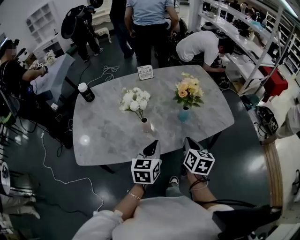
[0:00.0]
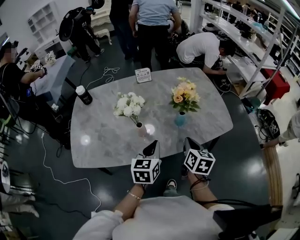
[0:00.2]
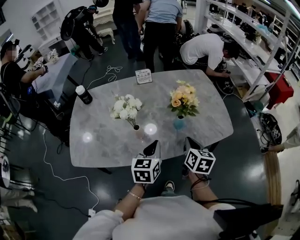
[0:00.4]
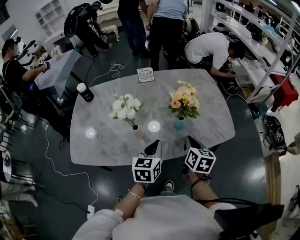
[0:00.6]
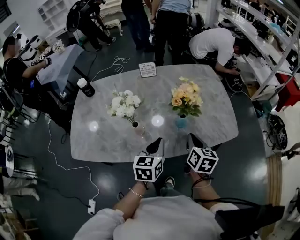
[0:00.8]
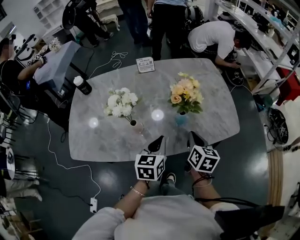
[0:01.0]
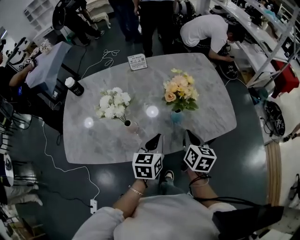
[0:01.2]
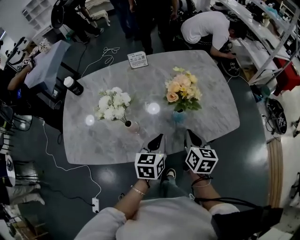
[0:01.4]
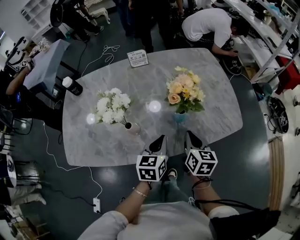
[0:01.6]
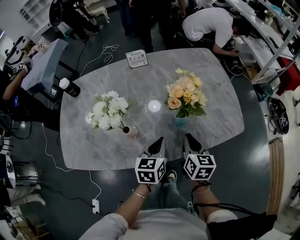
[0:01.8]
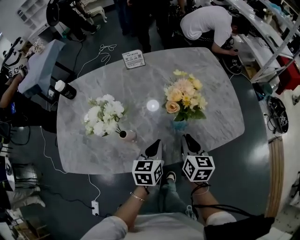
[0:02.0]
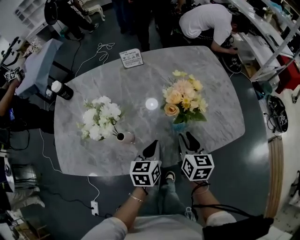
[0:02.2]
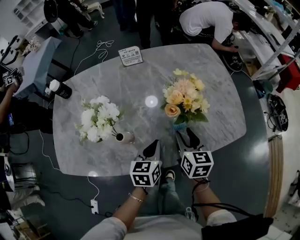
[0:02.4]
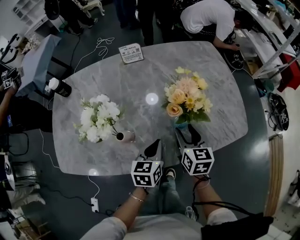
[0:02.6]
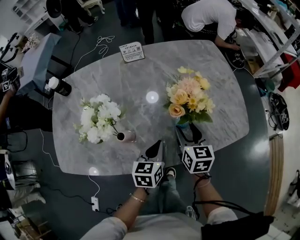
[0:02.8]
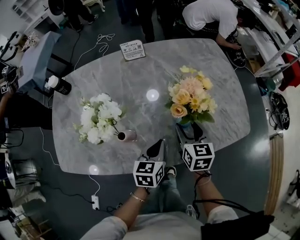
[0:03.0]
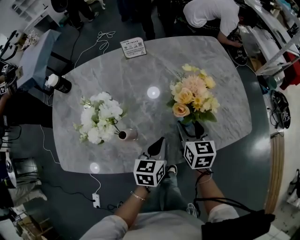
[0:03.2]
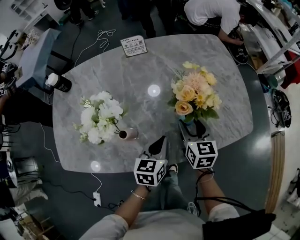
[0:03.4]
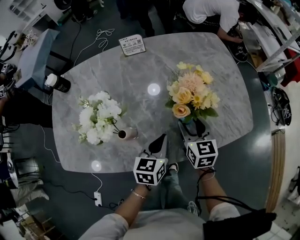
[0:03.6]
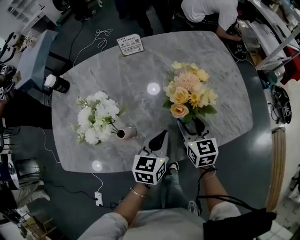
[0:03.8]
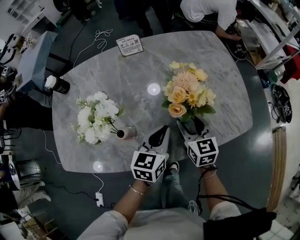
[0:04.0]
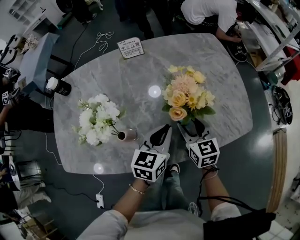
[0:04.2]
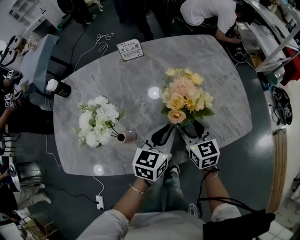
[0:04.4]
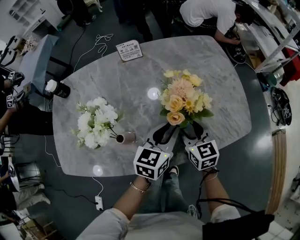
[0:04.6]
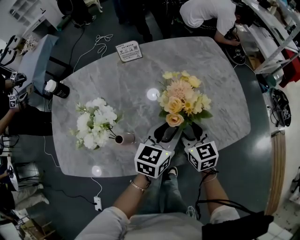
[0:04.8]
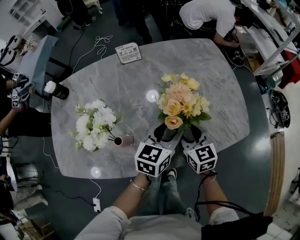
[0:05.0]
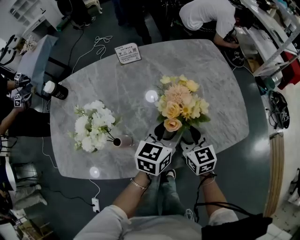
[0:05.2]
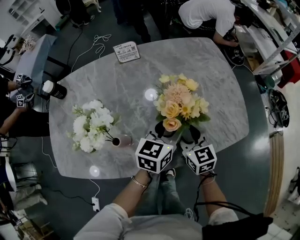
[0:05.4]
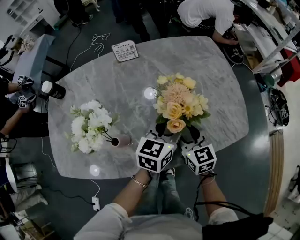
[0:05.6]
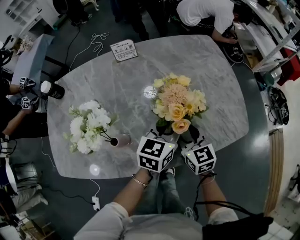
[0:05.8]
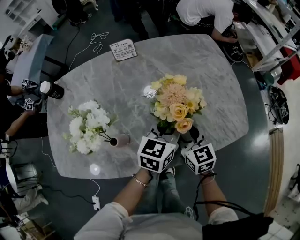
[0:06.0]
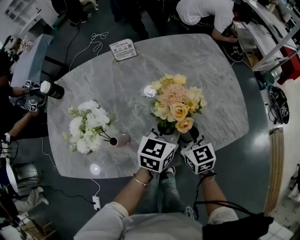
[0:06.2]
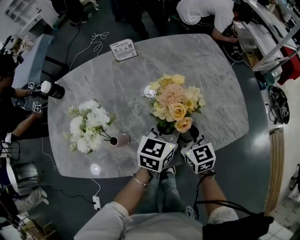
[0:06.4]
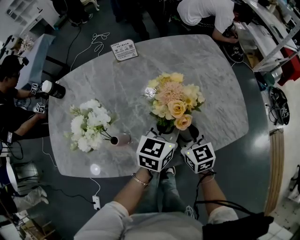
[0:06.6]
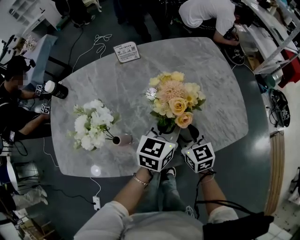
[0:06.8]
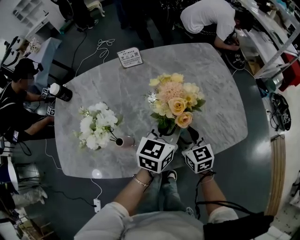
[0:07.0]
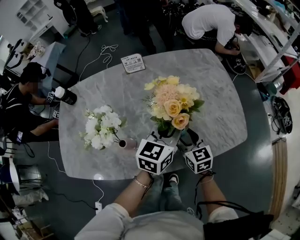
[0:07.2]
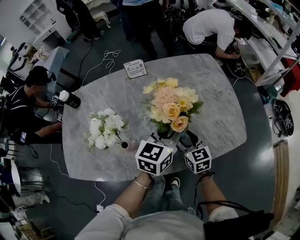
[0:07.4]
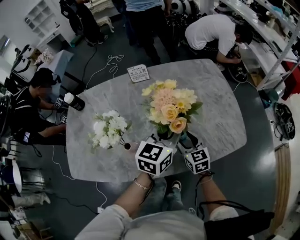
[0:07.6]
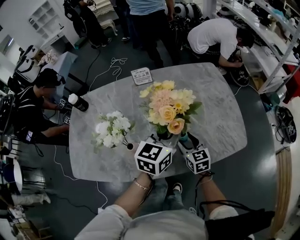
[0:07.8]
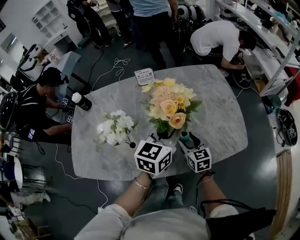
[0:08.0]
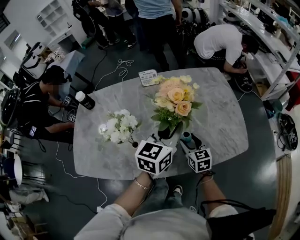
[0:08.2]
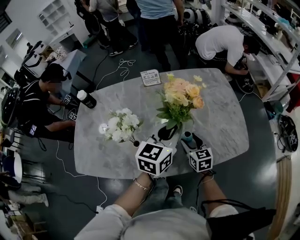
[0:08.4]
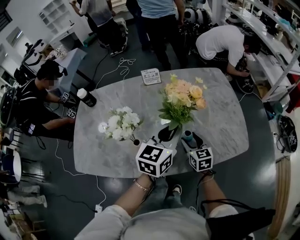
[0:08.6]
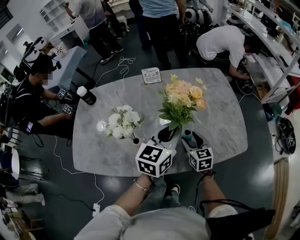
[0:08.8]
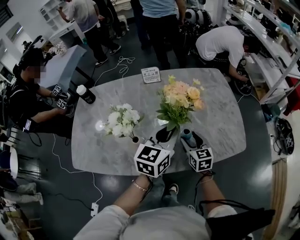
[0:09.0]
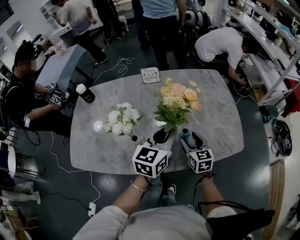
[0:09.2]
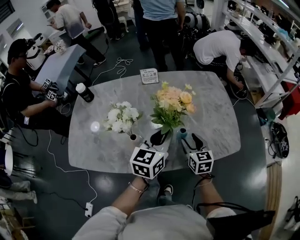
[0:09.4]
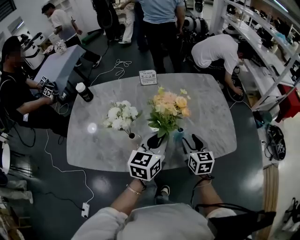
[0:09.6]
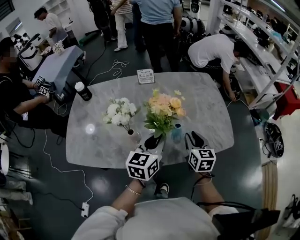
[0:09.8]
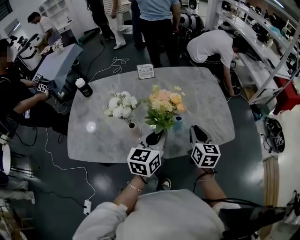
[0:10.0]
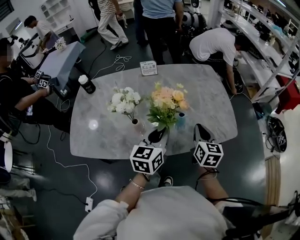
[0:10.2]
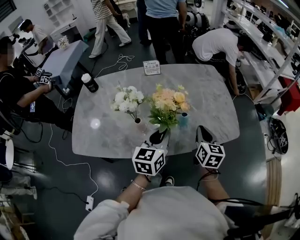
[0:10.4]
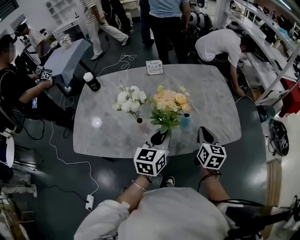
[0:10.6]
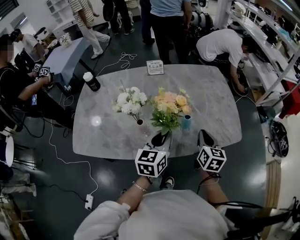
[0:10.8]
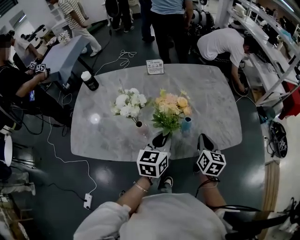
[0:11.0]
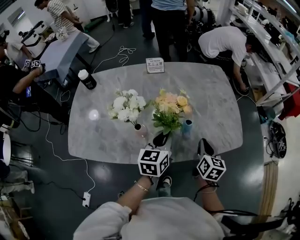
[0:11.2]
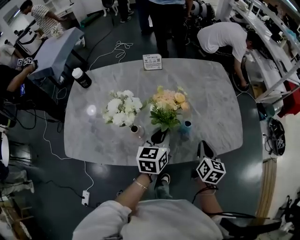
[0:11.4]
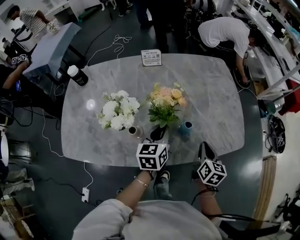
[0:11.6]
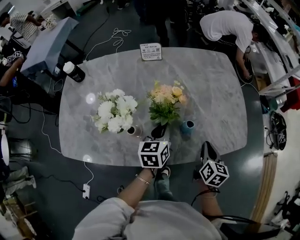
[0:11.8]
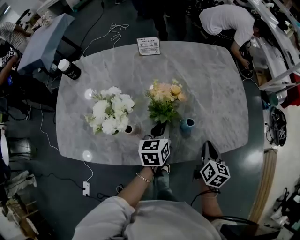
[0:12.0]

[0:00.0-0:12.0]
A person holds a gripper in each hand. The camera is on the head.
0:00.0 to 0:01.6: The left gripper travels forward, to the right and downward by approximately 15 cm; the right gripper goes about 10 cm forward and downward.
0:01.6 to 0:03.0: The right gripper travels forward by approximately 10 cm, and opens. The left gripper travels downward by approximately 5 cm.
0:03.0 to 0:04.4: The left gripper moves upward and forward, about 10 cm.
0:04.4 to 0:06.0: The left gripper changes place by about 5 cm, and opens, then closes again.
0:06.0 to 0:07.6: The left gripper shifts roughly 10 cm upward.
0:07.6 to 0:09.0: The left gripper ends up approximately 5 cm from where it was.
0:09.0 to 0:10.4: The right gripper travels upward, backward and to the right by some 15 cm, and closes its fingers. Meanwhile the left gripper is displaced backward by roughly 10 cm.
0:10.4 to 0:12.0: The left gripper goes roughly 20 cm downward and forward, and turns by approximately 20 degrees, while the right gripper travels downward by approximately 10 cm.

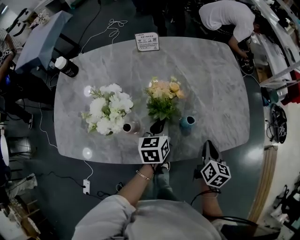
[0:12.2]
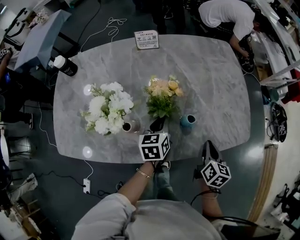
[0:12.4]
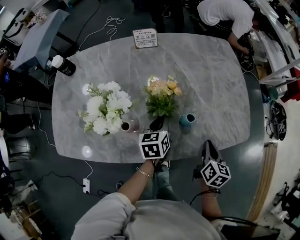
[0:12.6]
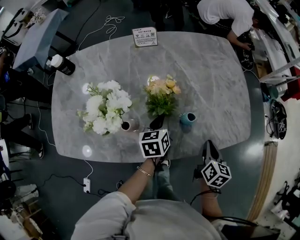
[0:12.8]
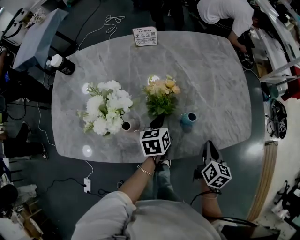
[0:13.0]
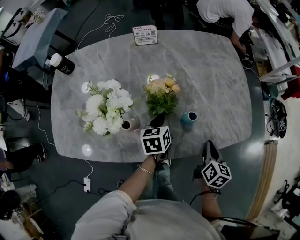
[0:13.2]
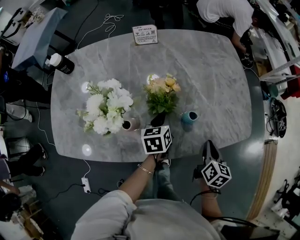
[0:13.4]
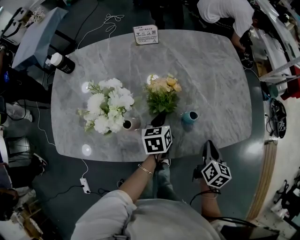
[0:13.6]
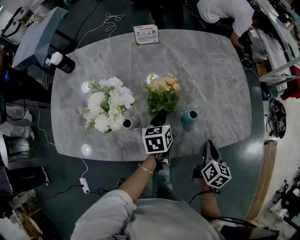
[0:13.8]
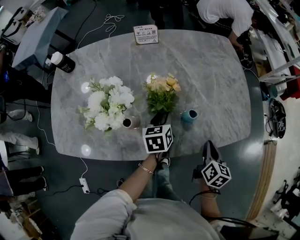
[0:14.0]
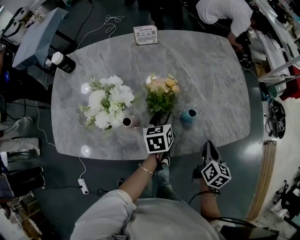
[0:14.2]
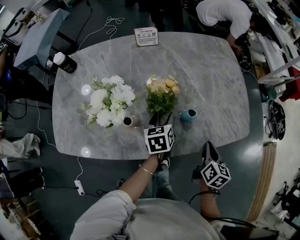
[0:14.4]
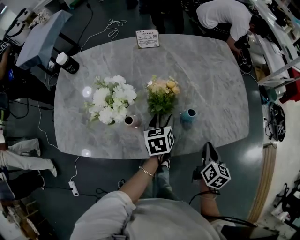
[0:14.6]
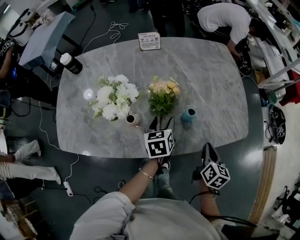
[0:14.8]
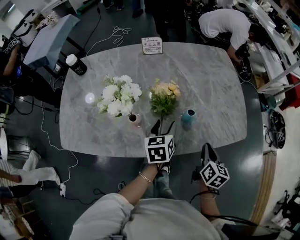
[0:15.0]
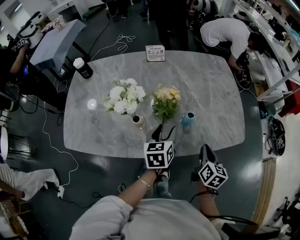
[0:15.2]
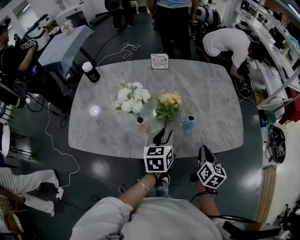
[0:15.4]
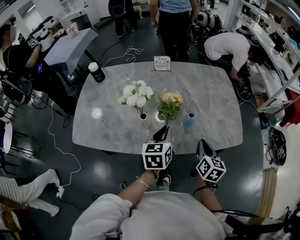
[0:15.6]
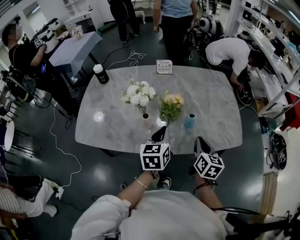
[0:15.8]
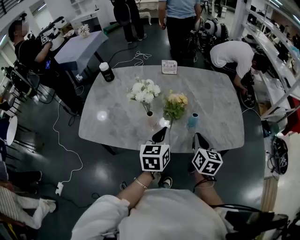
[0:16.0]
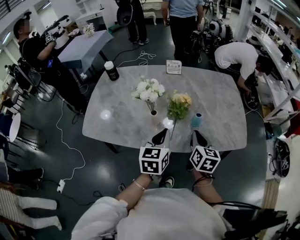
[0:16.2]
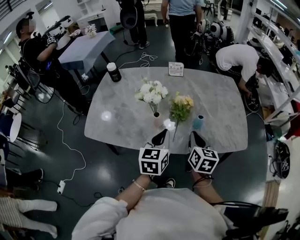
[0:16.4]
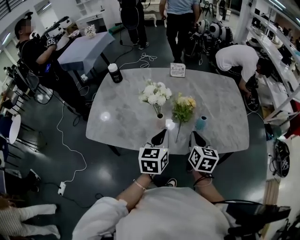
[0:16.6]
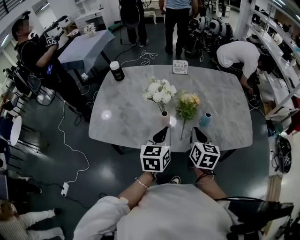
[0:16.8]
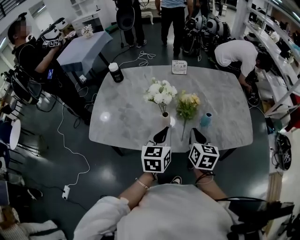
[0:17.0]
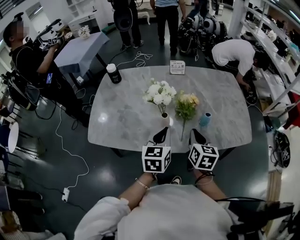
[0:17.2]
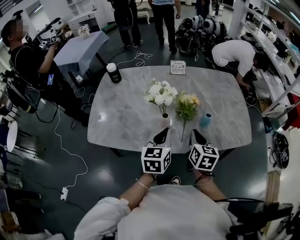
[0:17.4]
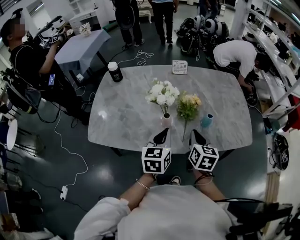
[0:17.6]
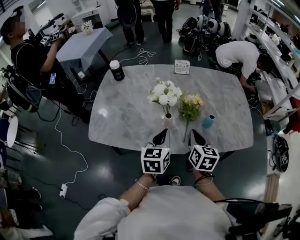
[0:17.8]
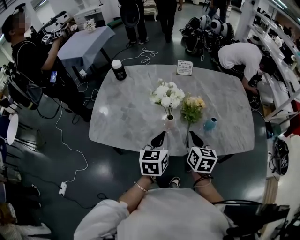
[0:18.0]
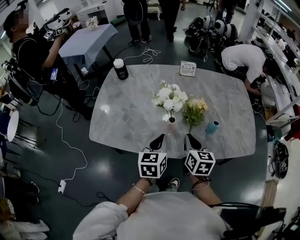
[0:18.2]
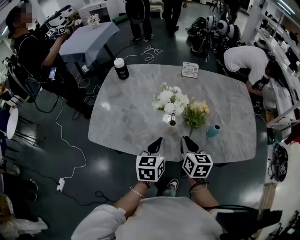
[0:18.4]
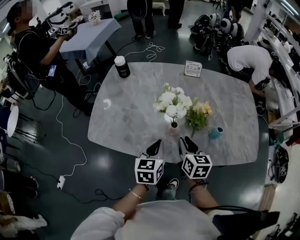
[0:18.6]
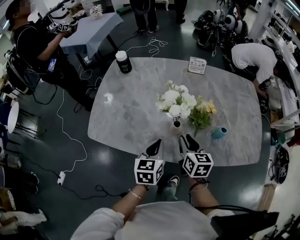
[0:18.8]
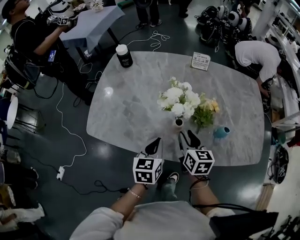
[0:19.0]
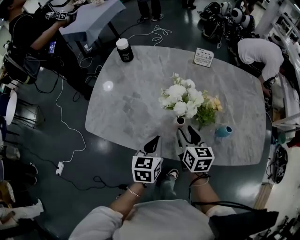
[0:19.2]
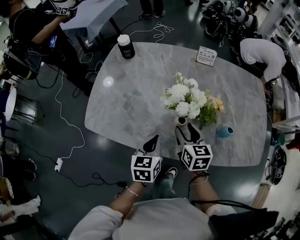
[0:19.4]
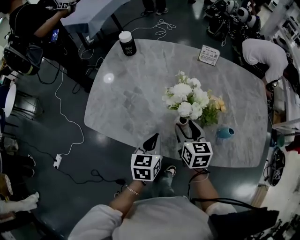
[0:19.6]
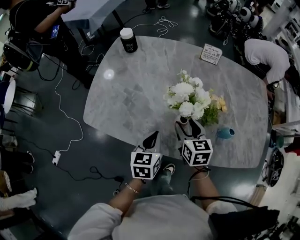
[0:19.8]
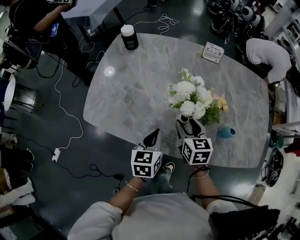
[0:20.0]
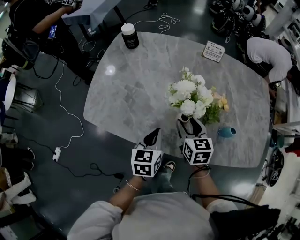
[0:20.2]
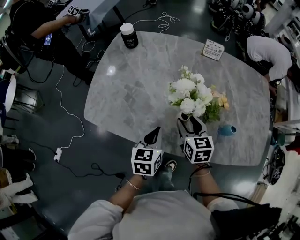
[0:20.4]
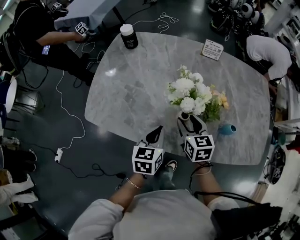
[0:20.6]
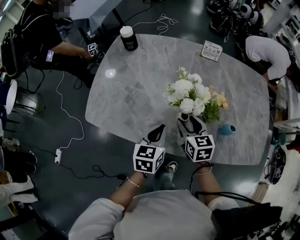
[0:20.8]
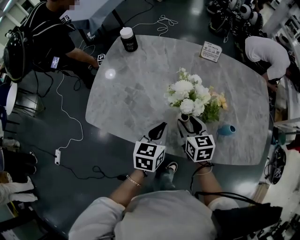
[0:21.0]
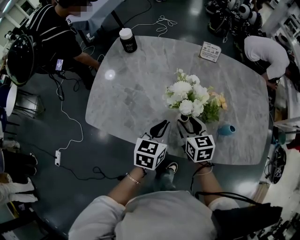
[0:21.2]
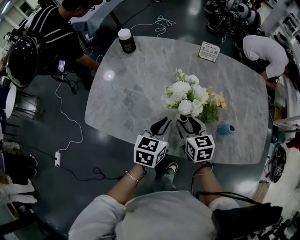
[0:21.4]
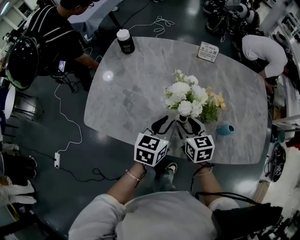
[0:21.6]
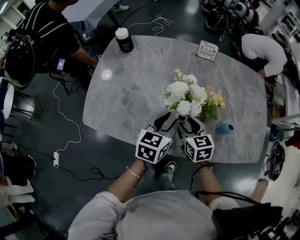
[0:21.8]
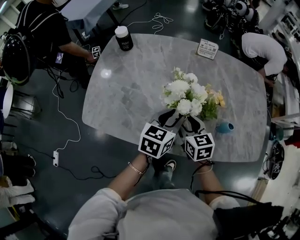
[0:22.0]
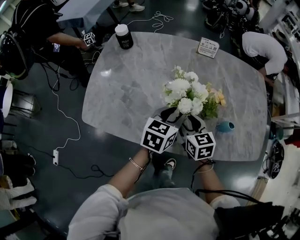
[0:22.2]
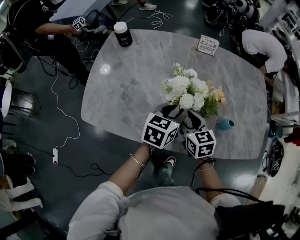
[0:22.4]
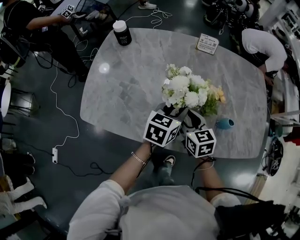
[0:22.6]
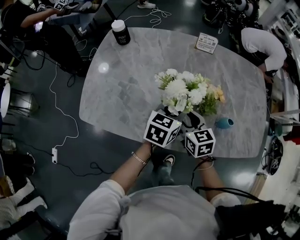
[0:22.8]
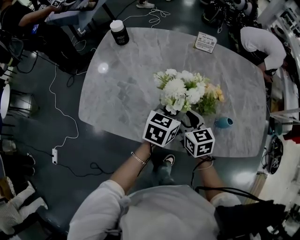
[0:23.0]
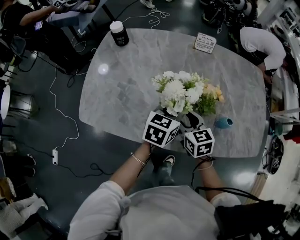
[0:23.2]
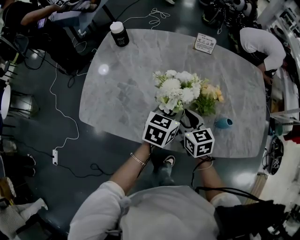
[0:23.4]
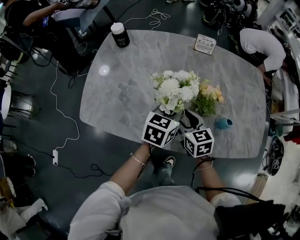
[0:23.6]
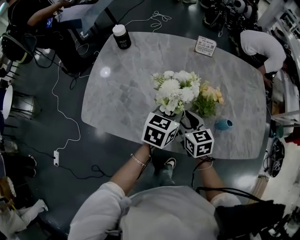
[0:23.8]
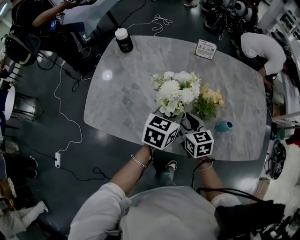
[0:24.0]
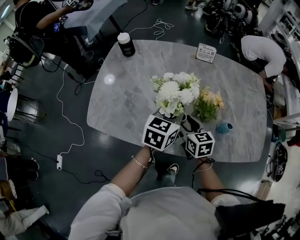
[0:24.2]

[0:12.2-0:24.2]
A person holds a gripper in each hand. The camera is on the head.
0:12.2 to 0:13.8: The grippers move only a little.
0:13.8 to 0:15.2: The right gripper moves approximately 5 cm. Meanwhile the left gripper travels upward and backward by approximately 10 cm, and opens.
0:15.2 to 0:16.6: The left gripper moves upward, backward and to the left, approximately 15 cm, and closes. The right gripper moves to the left and upward, roughly 20 cm, and changes its angle by about 20 degrees.
0:16.6 to 0:18.2: The two grippers go some 10 cm to the left.
0:18.2 to 0:19.8: The left gripper moves downward and to the left, roughly 10 cm, while the right gripper moves forward, to the left and downward, roughly 15 cm, and opens up.
0:19.8 to 0:21.2: The left gripper ends up roughly 5 cm from where it was.
0:21.2 to 0:22.6: The left gripper shifts roughly 10 cm to the right and forward, and opens up.
0:22.6 to 0:24.2: The left gripper closes up.
